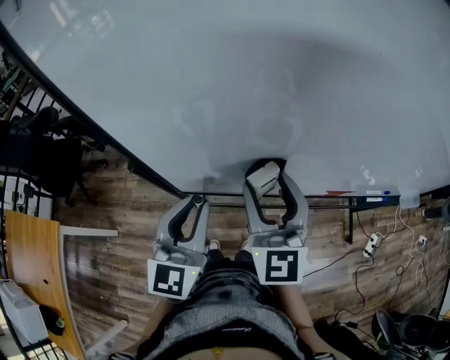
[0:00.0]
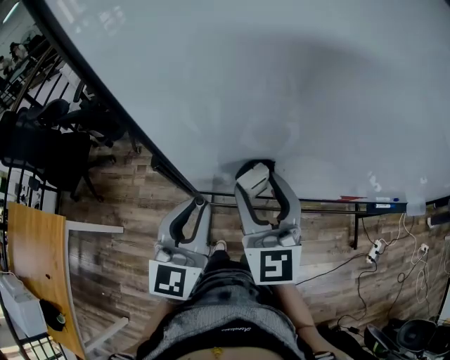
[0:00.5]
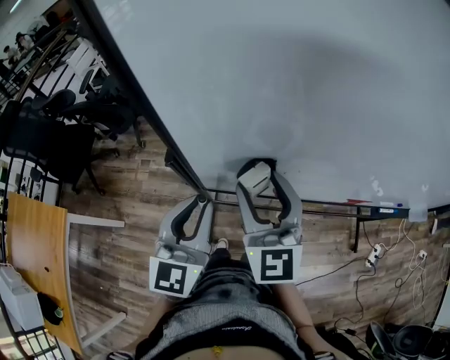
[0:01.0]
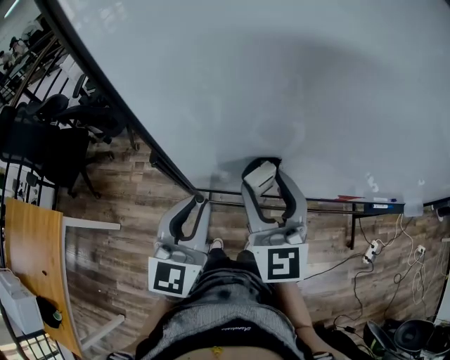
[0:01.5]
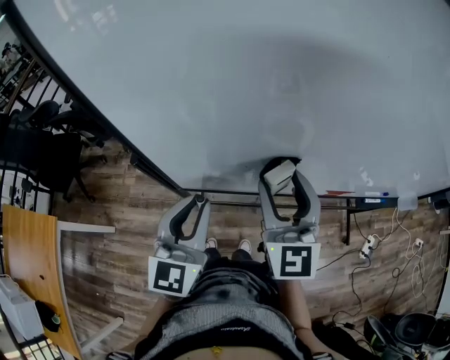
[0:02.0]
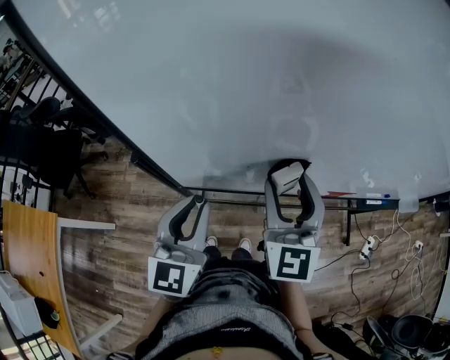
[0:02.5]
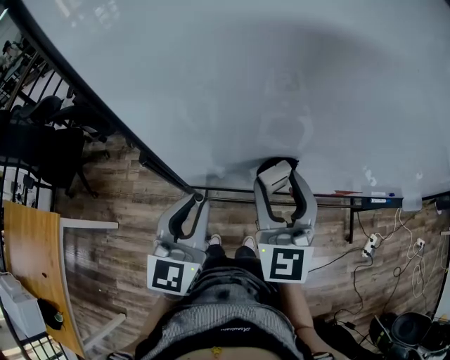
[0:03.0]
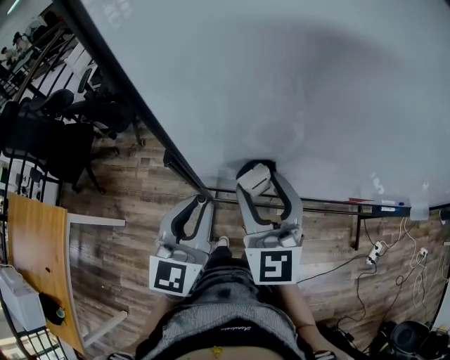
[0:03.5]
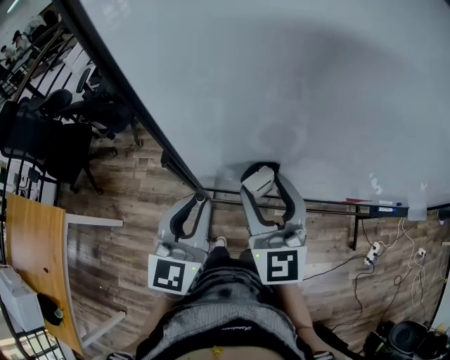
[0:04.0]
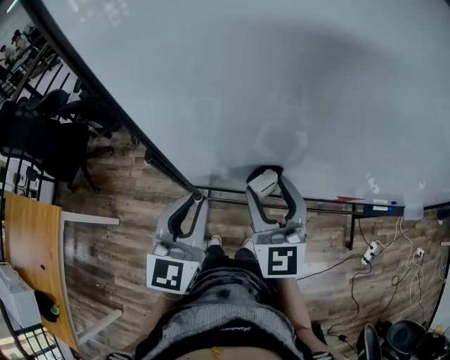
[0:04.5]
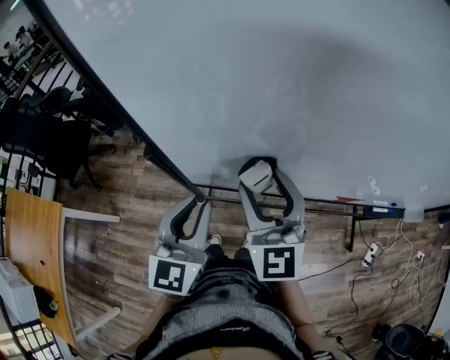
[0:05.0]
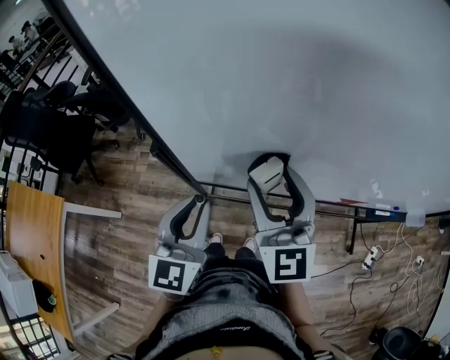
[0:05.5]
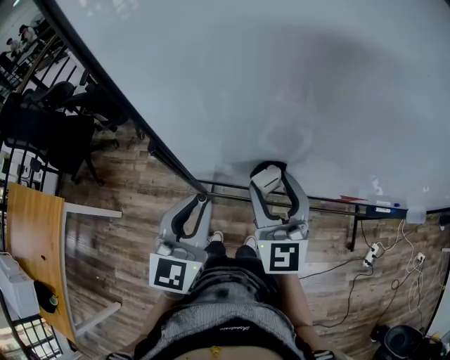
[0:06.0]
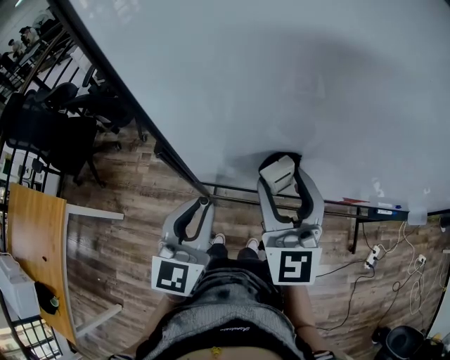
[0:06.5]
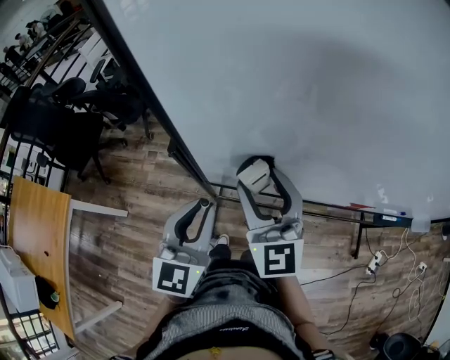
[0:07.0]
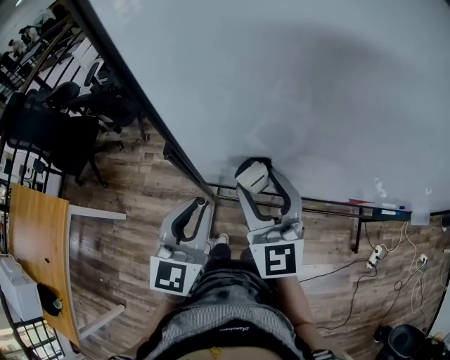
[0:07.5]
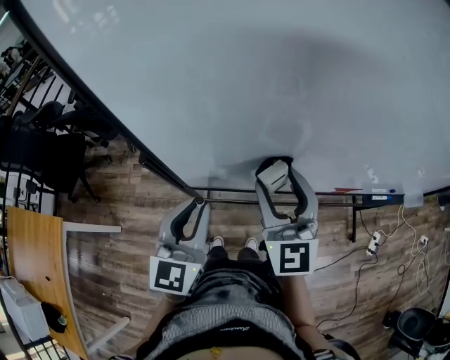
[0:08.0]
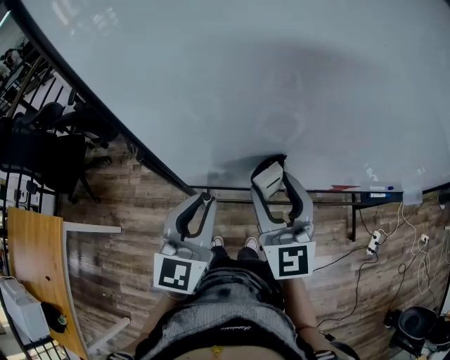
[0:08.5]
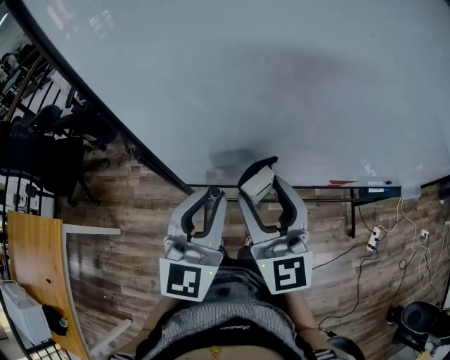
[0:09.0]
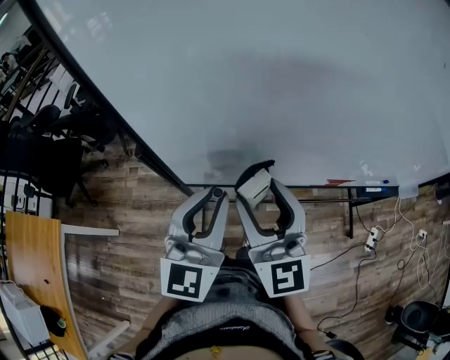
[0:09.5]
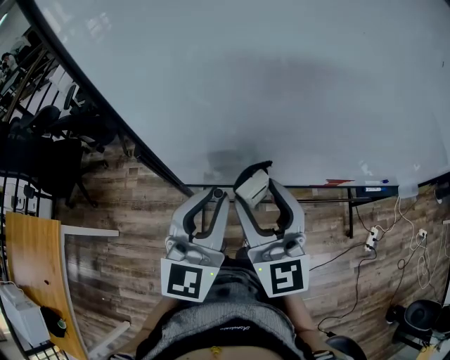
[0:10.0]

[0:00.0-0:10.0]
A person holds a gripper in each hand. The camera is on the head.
0:00.0 to 0:02.0: The right gripper travels to the left and back again, roughly 10 cm each way.
0:02.0 to 0:04.0: The left gripper goes about 5 cm to the left; the right gripper travels to the left by roughly 10 cm.
0:04.0 to 0:06.0: The right gripper shifts by some 5 cm.
0:06.0 to 0:08.0: The right gripper moves some 5 cm to the left and comes back.
0:08.0 to 0:10.0: The left gripper moves upward and to the right, some 10 cm. The right gripper moves backward, approximately 5 cm.

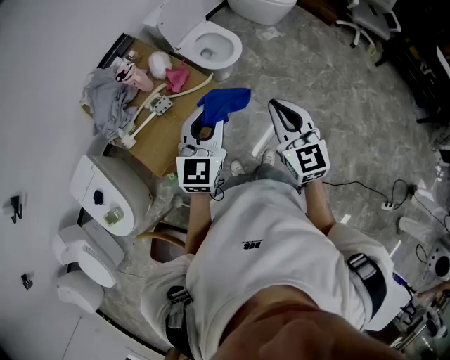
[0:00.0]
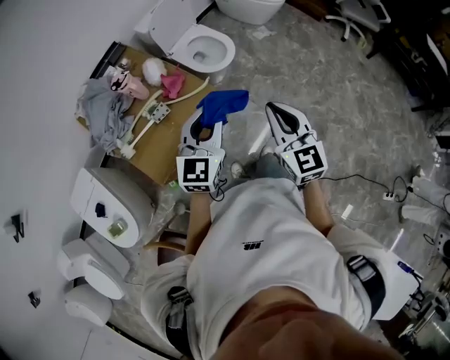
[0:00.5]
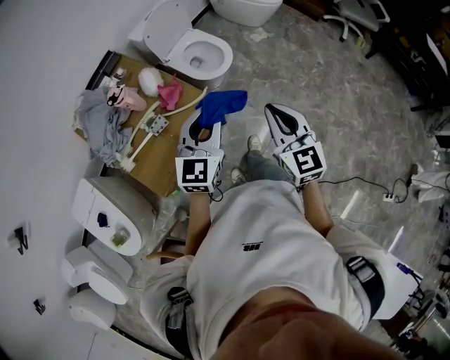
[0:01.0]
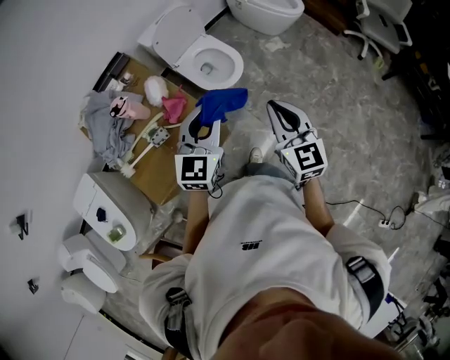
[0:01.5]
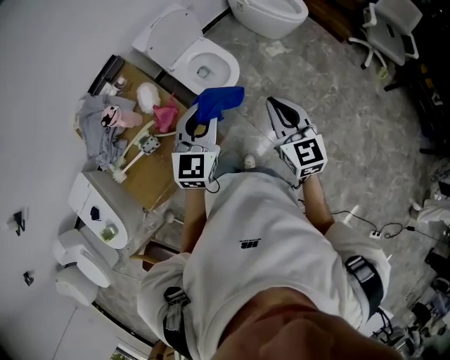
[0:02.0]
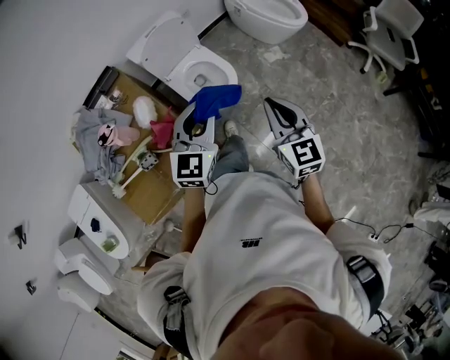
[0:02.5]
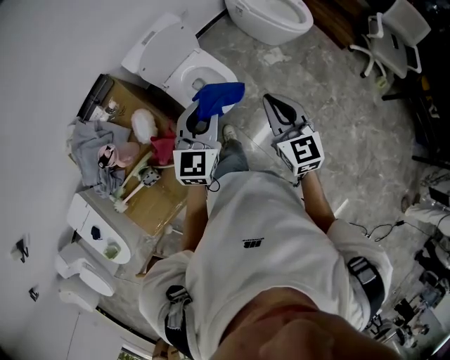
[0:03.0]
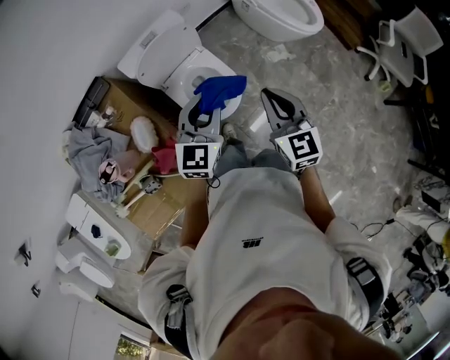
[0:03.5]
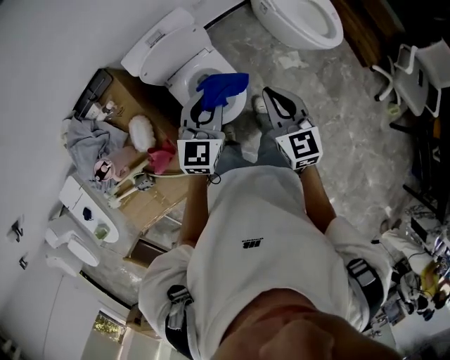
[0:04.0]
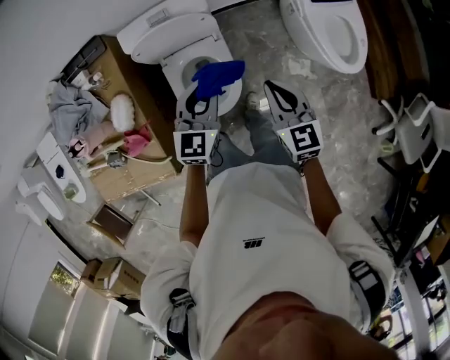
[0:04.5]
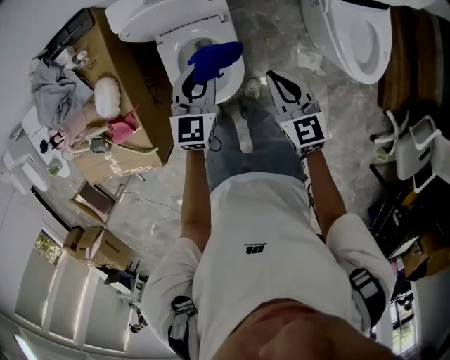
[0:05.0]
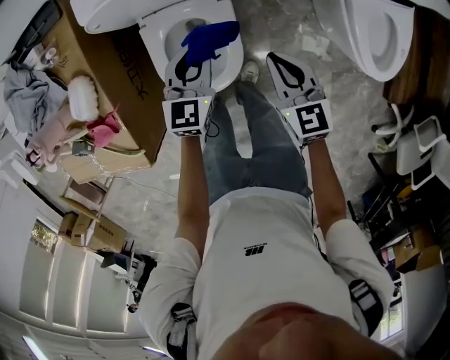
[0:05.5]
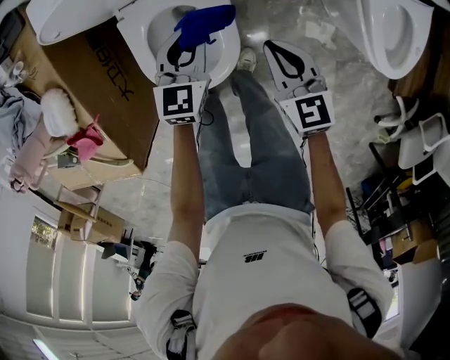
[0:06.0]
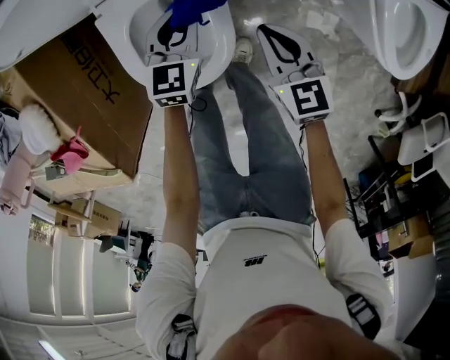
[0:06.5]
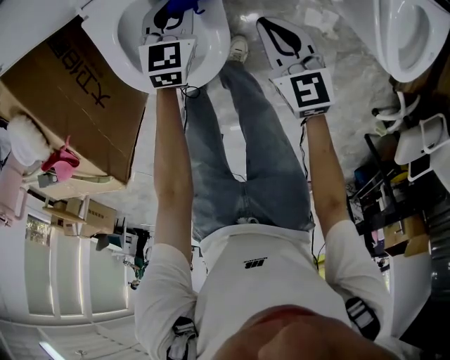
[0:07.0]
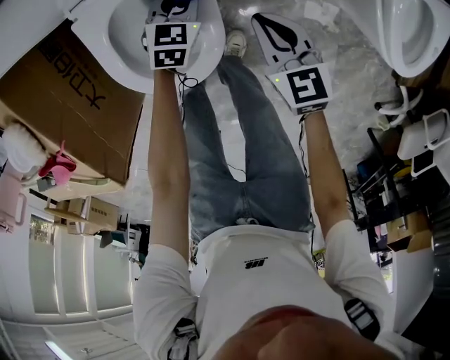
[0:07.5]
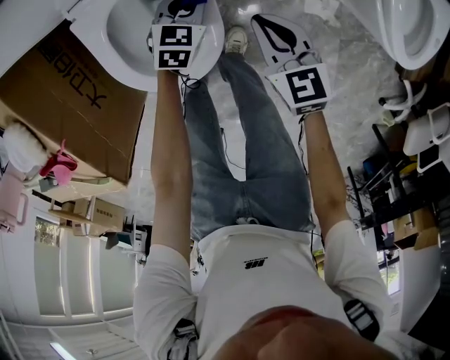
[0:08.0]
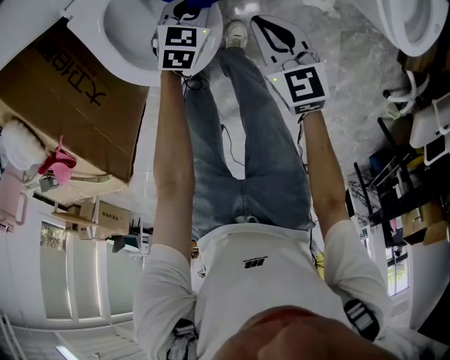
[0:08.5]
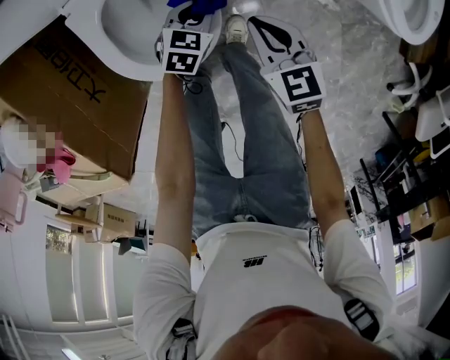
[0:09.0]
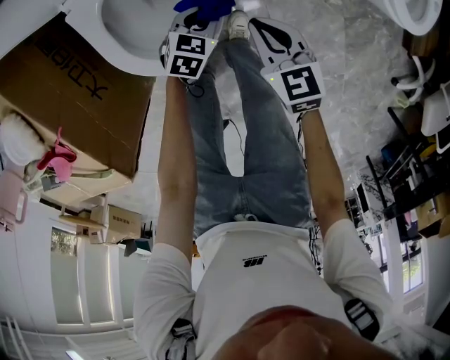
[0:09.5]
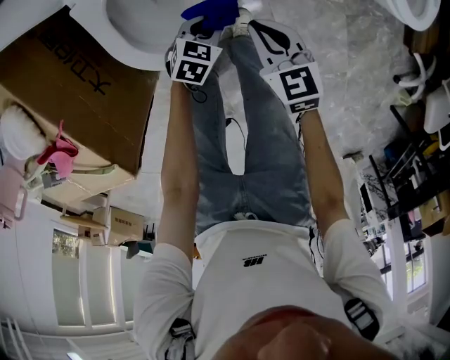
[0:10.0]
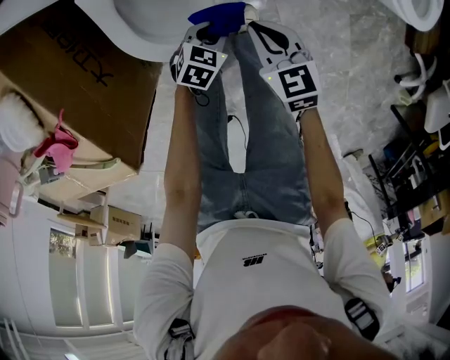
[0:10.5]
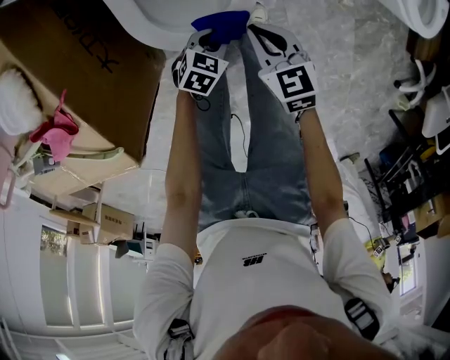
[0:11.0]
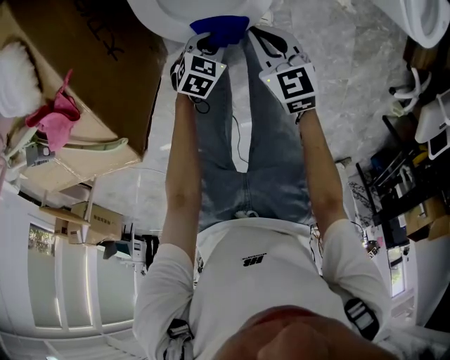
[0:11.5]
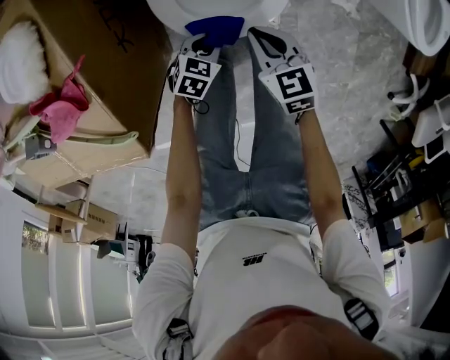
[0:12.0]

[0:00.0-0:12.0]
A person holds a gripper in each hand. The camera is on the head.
0:00.0 to 0:02.0: The grippers both shift forward by roughly 25 cm.
0:02.0 to 0:04.0: The grippers both shift forward by approximately 40 cm.
0:04.0 to 0:06.0: The grippers both shift downward by about 40 cm. The left gripper turns by some 30 degrees, while the right gripper swivels approximately 30 degrees.
0:06.0 to 0:08.0: The right gripper is displaced downward by about 15 cm; the left gripper goes about 20 cm downward, and turns by approximately 20 degrees.
0:08.0 to 0:10.0: The two grippers go some 15 cm backward.
0:10.0 to 0:12.0: The grippers both shift to the left and backward by some 20 cm.

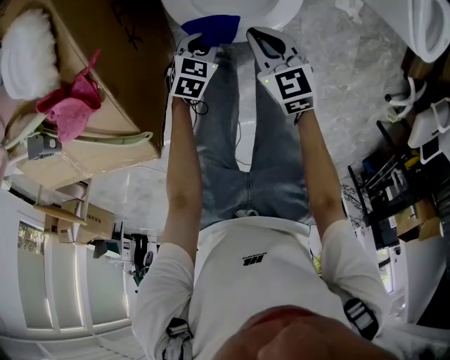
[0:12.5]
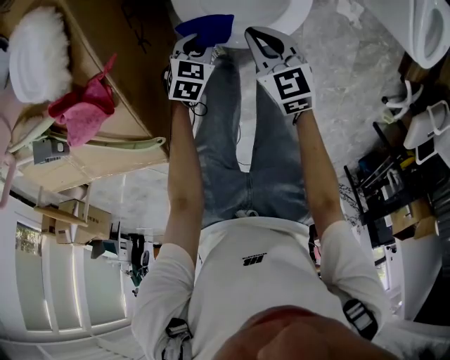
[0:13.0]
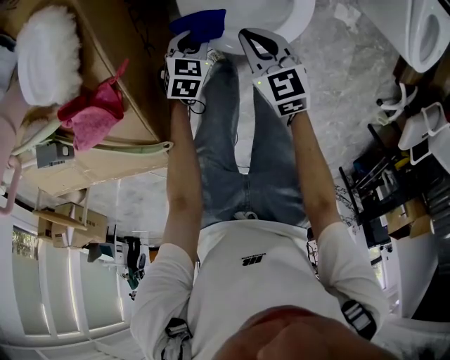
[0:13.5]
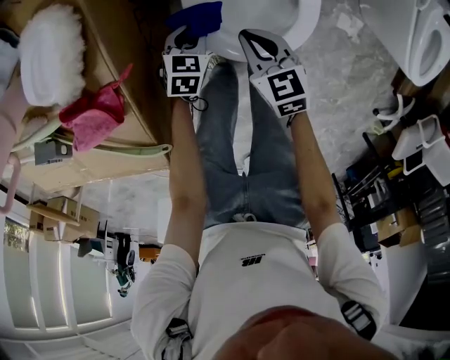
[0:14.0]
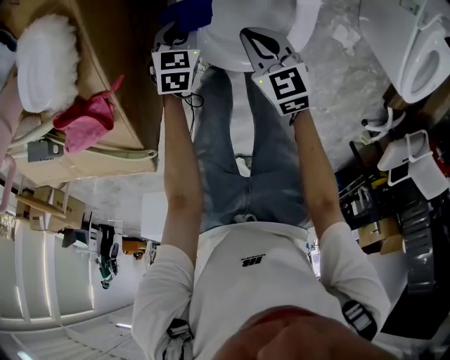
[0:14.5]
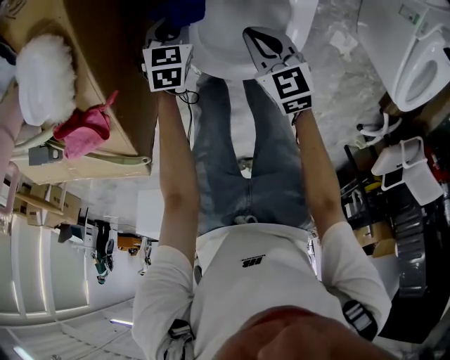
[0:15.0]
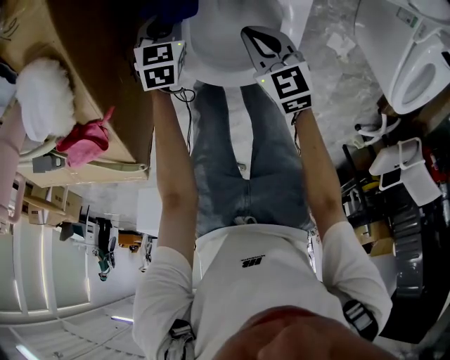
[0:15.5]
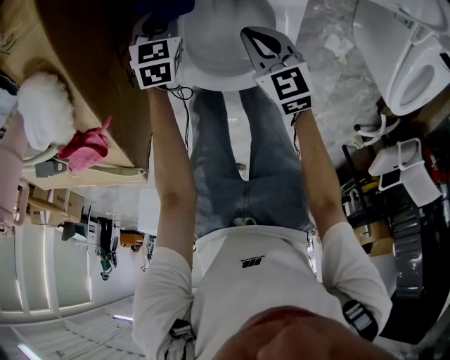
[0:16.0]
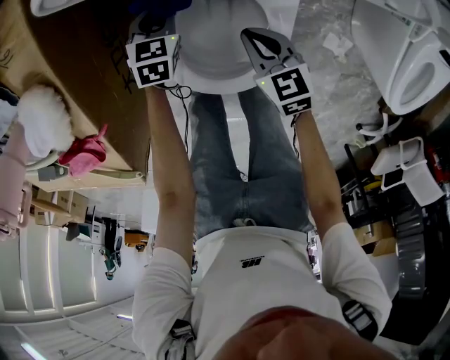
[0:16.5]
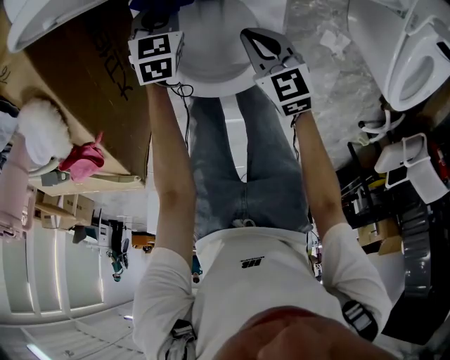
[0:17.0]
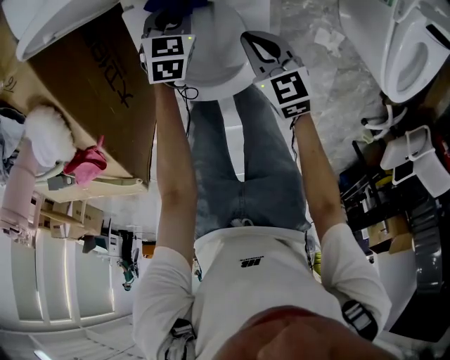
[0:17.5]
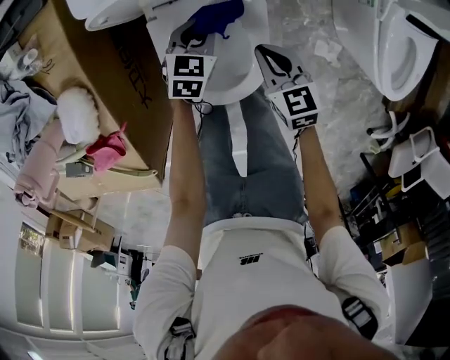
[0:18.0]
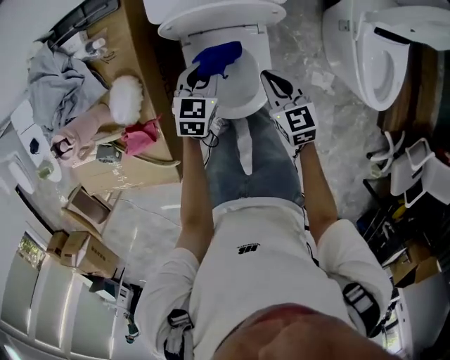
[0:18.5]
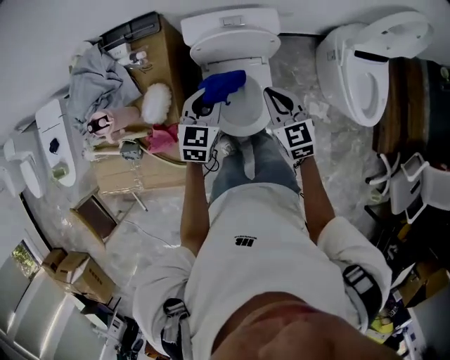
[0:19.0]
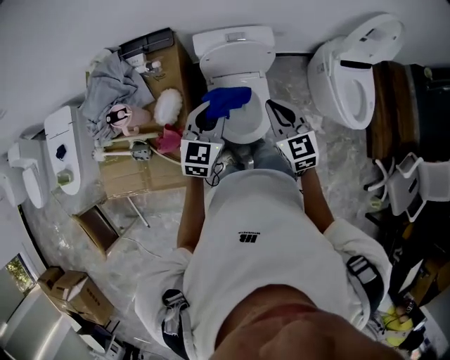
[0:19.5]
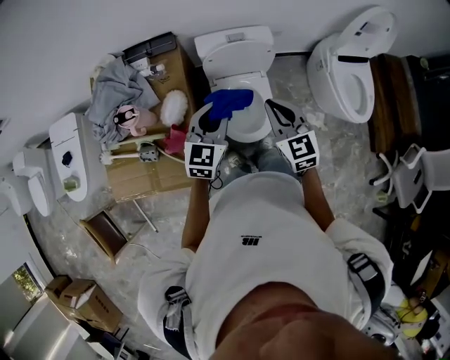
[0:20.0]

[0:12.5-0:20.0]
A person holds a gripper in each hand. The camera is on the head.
0:12.5 to 0:14.5: The left gripper moves forward and to the left, about 15 cm, and changes its angle by approximately 20 degrees. The right gripper is displaced forward by approximately 10 cm.
0:14.5 to 0:16.5: The left gripper moves forward and to the right, some 15 cm. Meanwhile the right gripper moves to the right and forward, roughly 10 cm.
0:16.5 to 0:18.0: The left gripper shifts some 20 cm to the right and upward, while the right gripper moves upward and to the right, approximately 15 cm.
0:18.0 to 0:20.0: The right gripper goes about 50 cm upward, and swivels approximately 30 degrees, while the left gripper is displaced upward and backward by roughly 60 cm, and rotates approximately 30 degrees.
